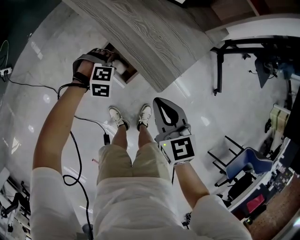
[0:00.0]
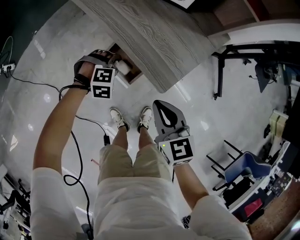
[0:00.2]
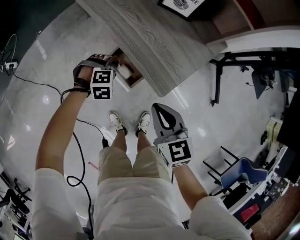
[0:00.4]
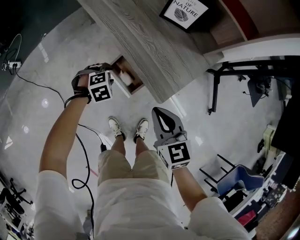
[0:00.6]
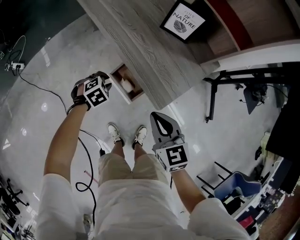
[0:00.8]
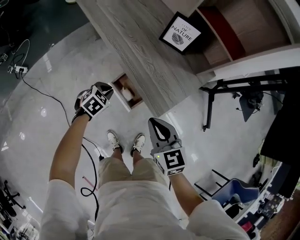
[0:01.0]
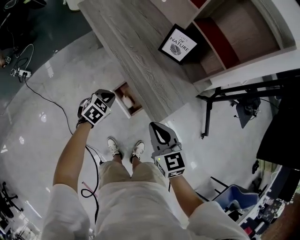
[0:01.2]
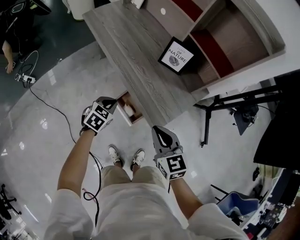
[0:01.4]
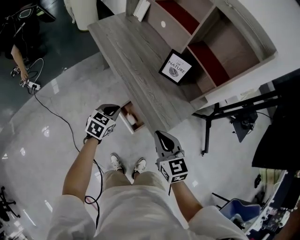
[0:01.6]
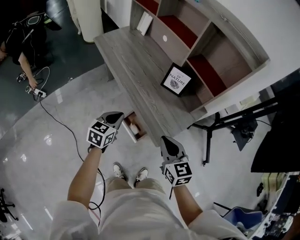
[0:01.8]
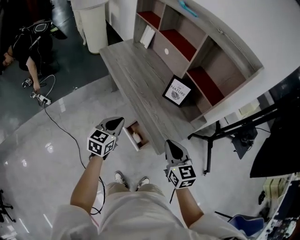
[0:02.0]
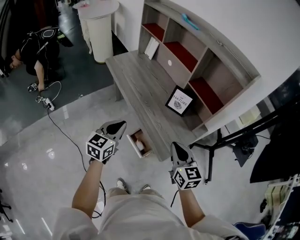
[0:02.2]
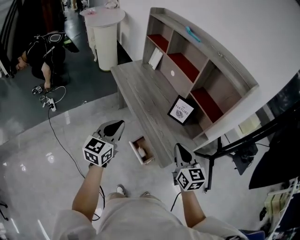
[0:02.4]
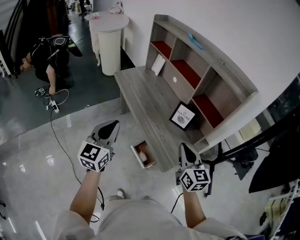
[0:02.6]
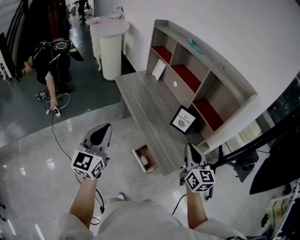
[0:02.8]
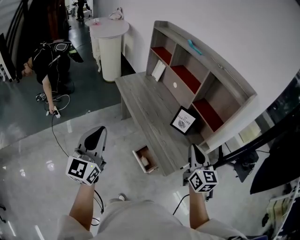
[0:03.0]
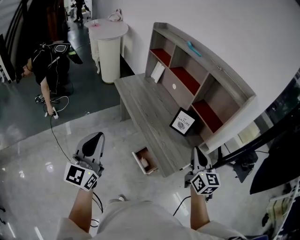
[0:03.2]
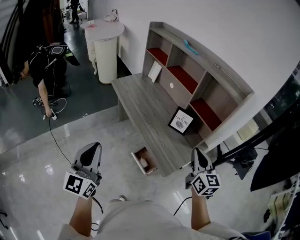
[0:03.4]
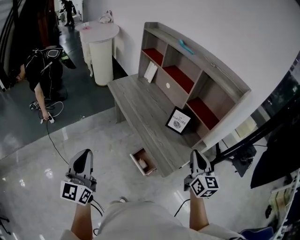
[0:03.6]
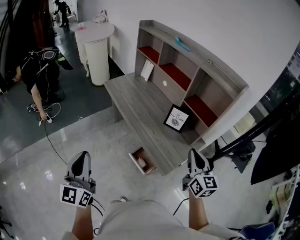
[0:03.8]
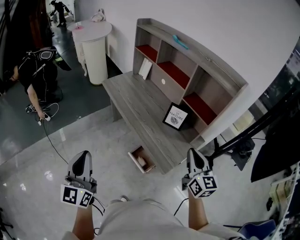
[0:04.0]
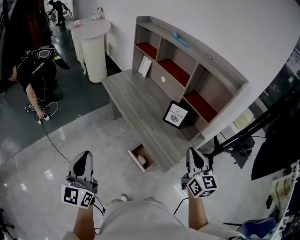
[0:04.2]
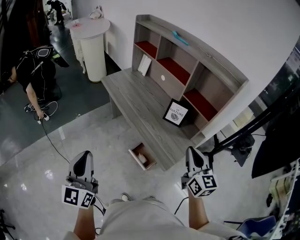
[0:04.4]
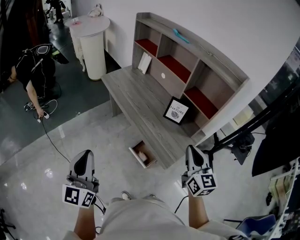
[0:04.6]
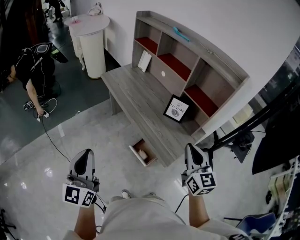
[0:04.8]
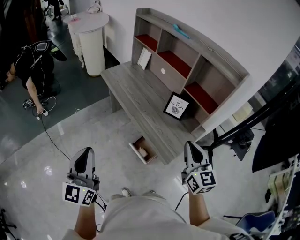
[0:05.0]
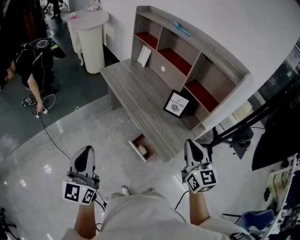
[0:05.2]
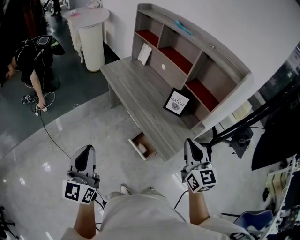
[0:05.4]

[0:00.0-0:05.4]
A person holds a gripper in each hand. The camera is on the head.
0.0 to 1.4 s: The left gripper moves upward and to the left, roughly 20 cm, rotates around the line of its fingers by roughly 60 degrees, counterclockwise from behind, and closes. The right gripper heads upward, covering approximately 15 cm.
1.4 to 2.8 s: The right gripper shifts roughly 20 cm upward, and rotates some 20 degrees. The left gripper moves upward, about 40 cm, and tips its fingers upward by about 50 degrees.
2.8 to 4.0 s: The left gripper is displaced backward and to the left by approximately 10 cm.
4.0 to 5.4 s: The right gripper shifts by approximately 5 cm.

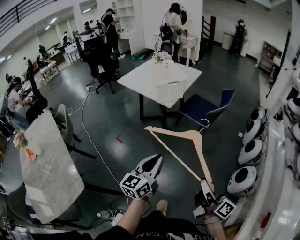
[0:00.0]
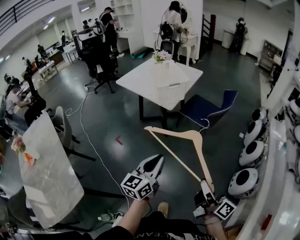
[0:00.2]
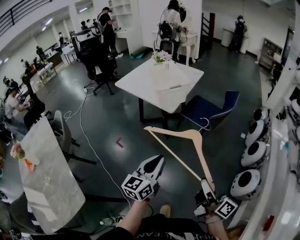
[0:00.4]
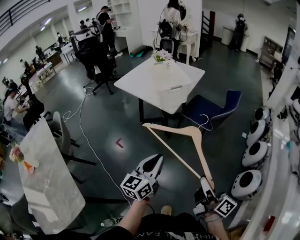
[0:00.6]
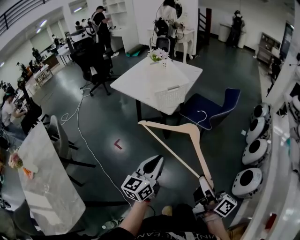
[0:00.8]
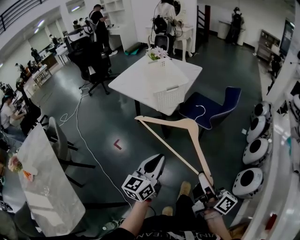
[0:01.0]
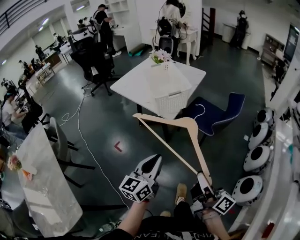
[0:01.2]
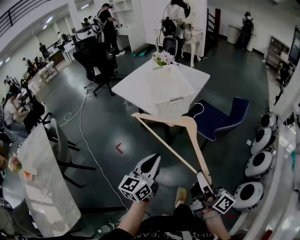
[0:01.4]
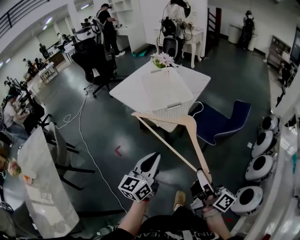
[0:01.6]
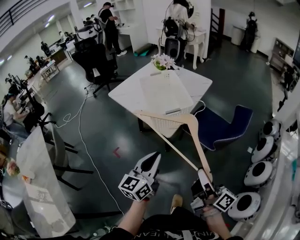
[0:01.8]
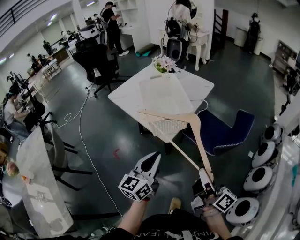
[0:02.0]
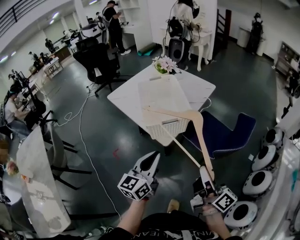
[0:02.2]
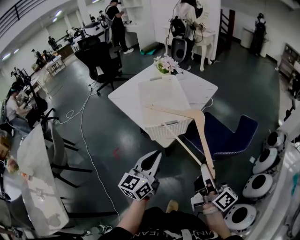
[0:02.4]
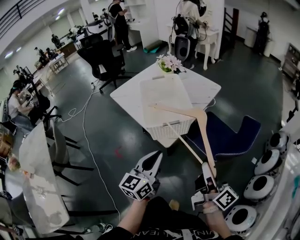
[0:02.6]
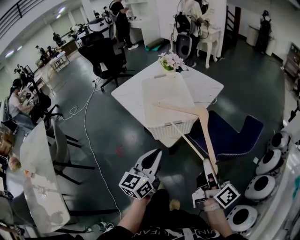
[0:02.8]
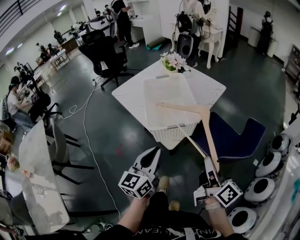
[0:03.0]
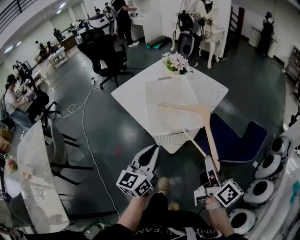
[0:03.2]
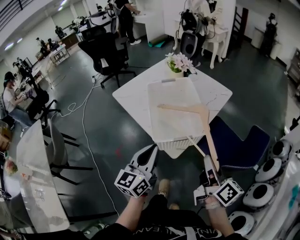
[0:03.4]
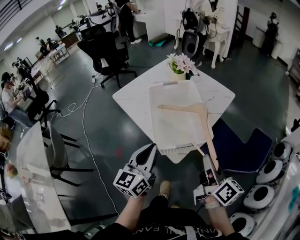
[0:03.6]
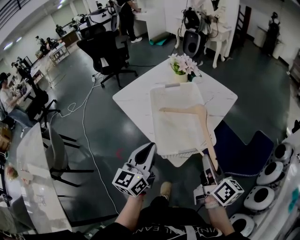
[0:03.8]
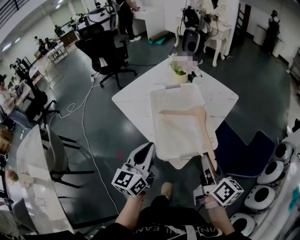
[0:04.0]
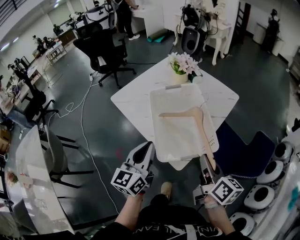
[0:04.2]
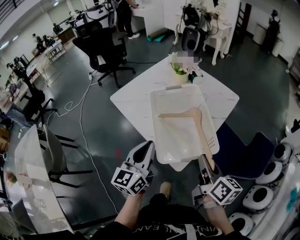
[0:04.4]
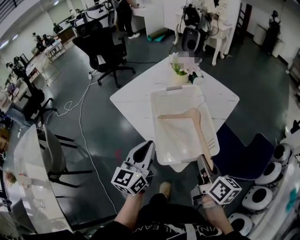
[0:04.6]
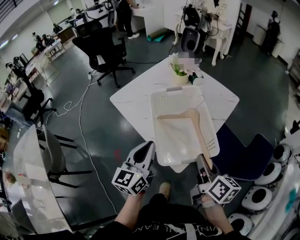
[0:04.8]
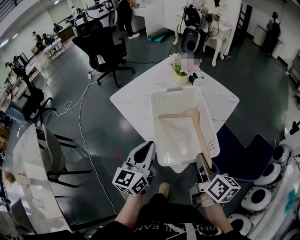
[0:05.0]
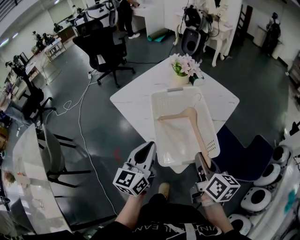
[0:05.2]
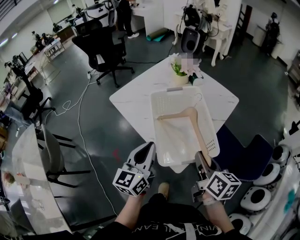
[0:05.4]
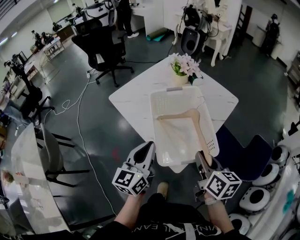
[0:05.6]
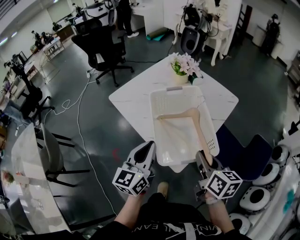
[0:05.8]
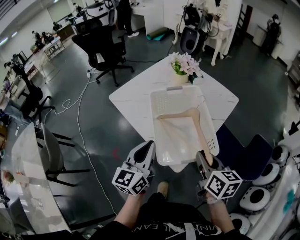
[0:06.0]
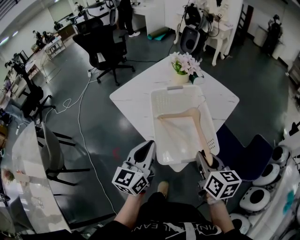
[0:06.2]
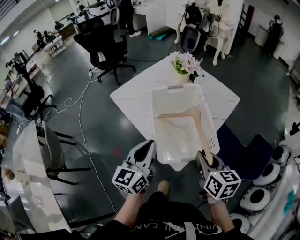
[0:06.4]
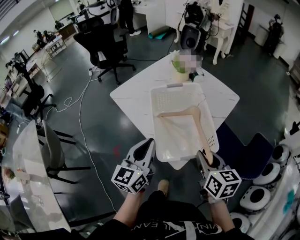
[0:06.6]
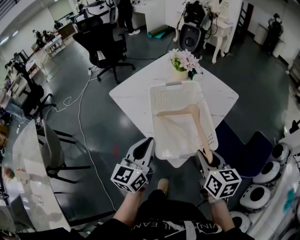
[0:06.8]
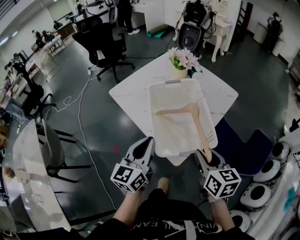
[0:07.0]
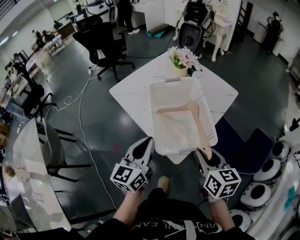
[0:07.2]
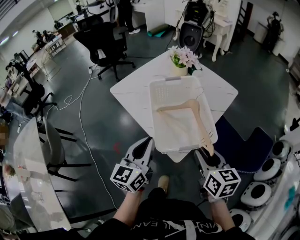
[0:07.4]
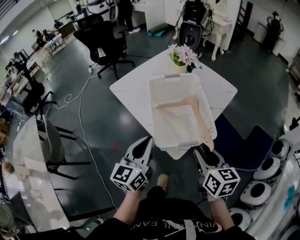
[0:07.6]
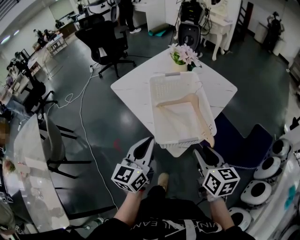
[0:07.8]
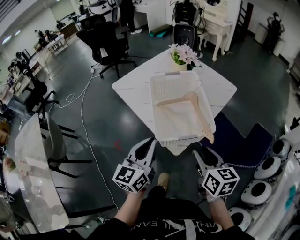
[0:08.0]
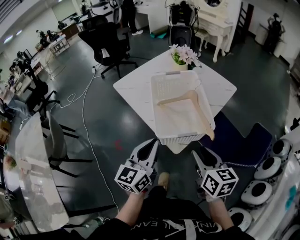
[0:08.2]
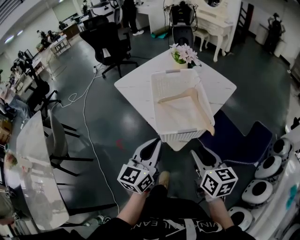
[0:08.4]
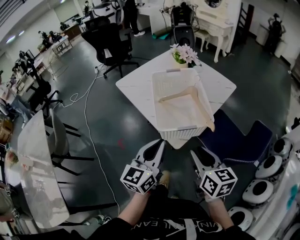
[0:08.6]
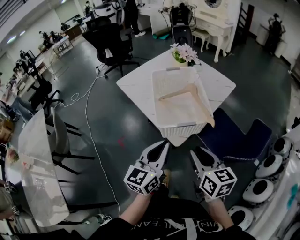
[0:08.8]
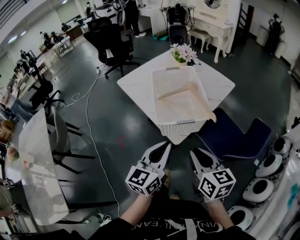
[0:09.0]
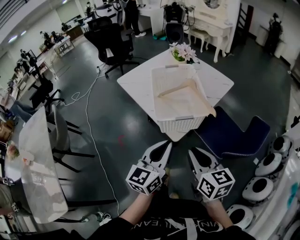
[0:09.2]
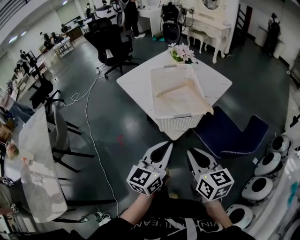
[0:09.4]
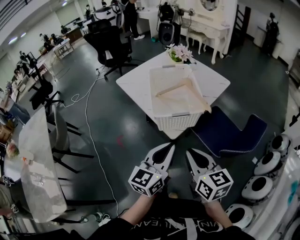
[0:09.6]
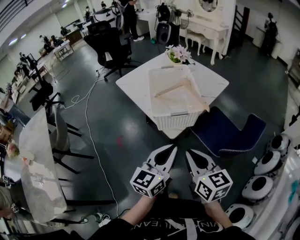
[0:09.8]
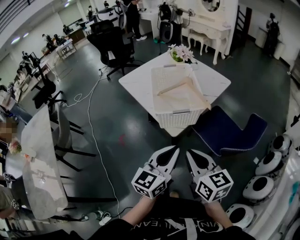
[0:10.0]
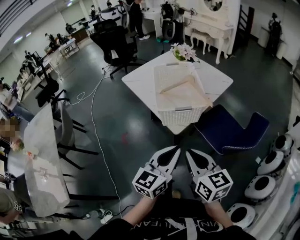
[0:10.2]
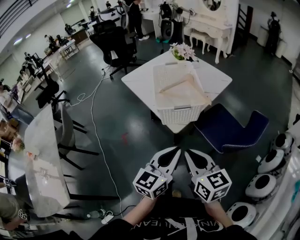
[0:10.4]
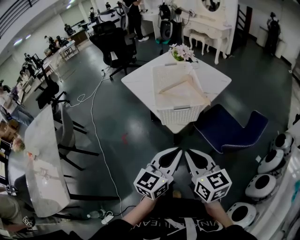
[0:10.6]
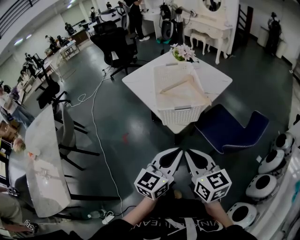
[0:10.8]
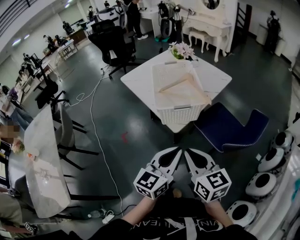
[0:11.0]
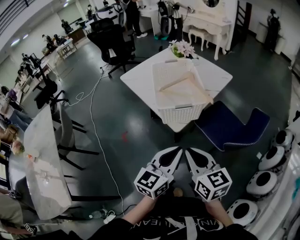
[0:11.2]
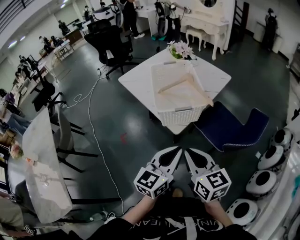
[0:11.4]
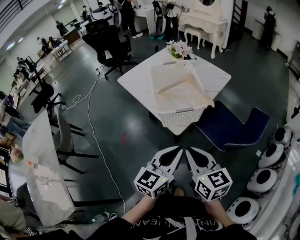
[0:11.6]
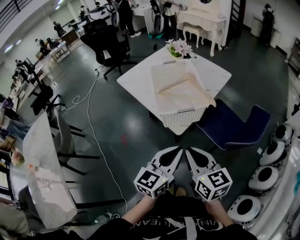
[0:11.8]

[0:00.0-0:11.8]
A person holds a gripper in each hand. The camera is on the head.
0.0 to 1.4 s: Both grippers travel together forward, some 25 cm.
1.4 to 3.0 s: The two grippers go about 25 cm forward.
3.0 to 4.4 s: The grippers both shift forward and to the left by about 20 cm. The right gripper swivels about 20 degrees.
4.4 to 6.0 s: The grippers make only small movements.
6.0 to 7.4 s: The right gripper opens up.
7.4 to 8.8 s: The right gripper goes some 10 cm backward. The left gripper goes some 15 cm backward and to the right.
8.8 to 10.4 s: The left gripper shifts roughly 15 cm backward and to the right; the right gripper is displaced backward by roughly 10 cm.
10.4 to 11.8 s: The grippers stay close to where they were, moving slightly.

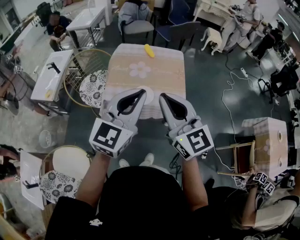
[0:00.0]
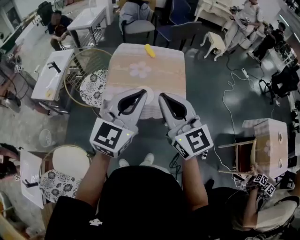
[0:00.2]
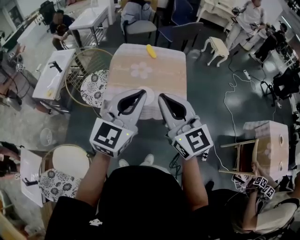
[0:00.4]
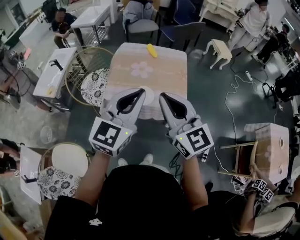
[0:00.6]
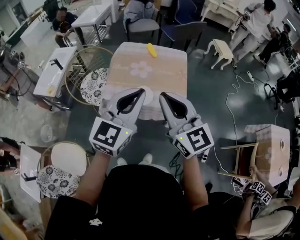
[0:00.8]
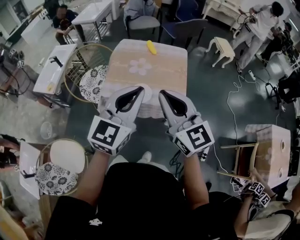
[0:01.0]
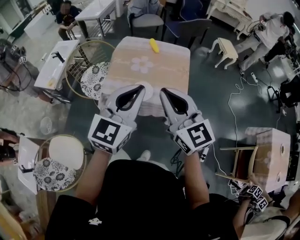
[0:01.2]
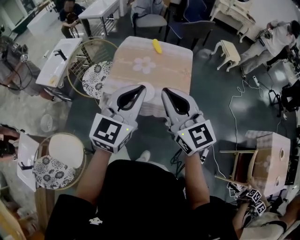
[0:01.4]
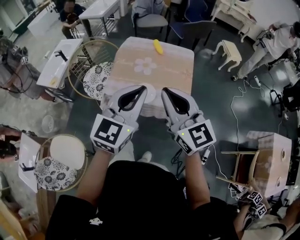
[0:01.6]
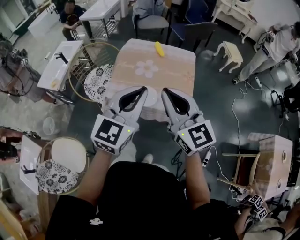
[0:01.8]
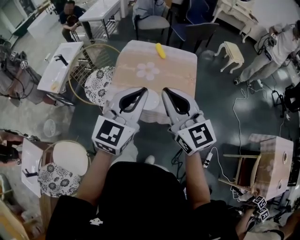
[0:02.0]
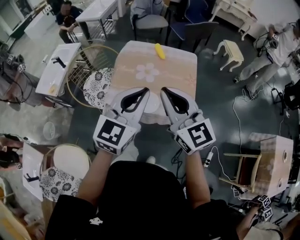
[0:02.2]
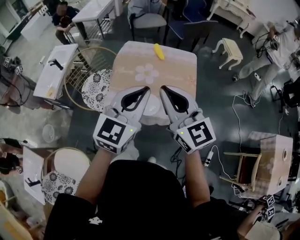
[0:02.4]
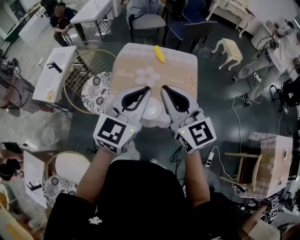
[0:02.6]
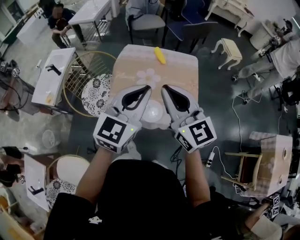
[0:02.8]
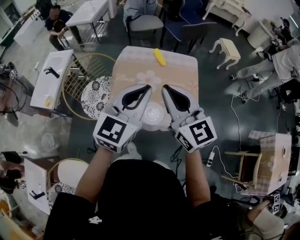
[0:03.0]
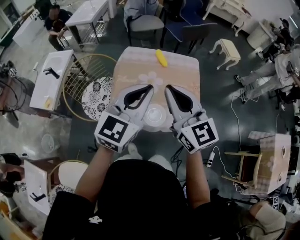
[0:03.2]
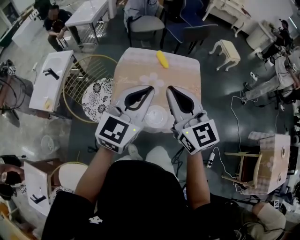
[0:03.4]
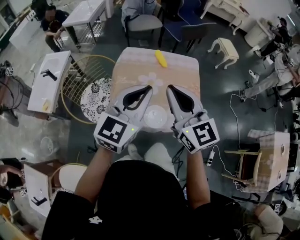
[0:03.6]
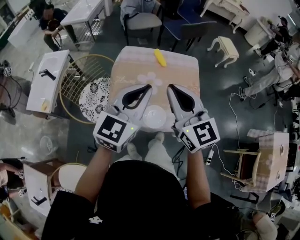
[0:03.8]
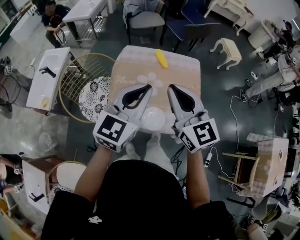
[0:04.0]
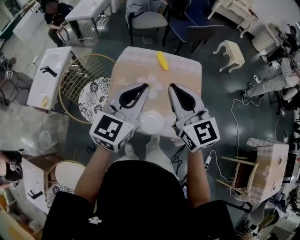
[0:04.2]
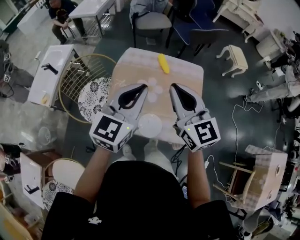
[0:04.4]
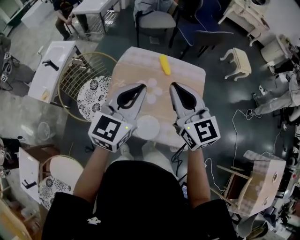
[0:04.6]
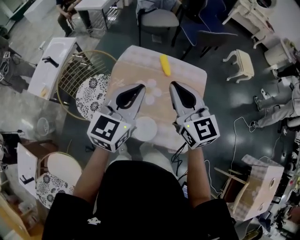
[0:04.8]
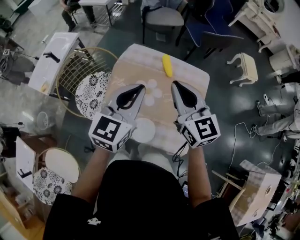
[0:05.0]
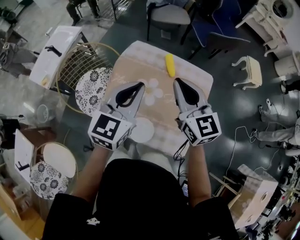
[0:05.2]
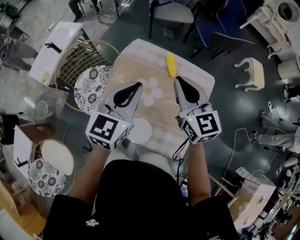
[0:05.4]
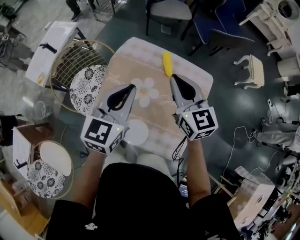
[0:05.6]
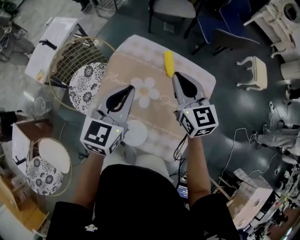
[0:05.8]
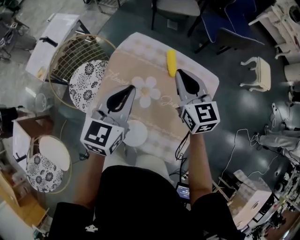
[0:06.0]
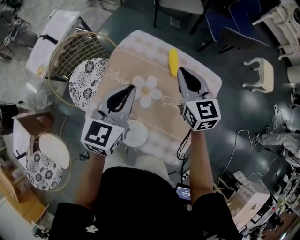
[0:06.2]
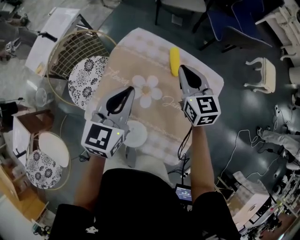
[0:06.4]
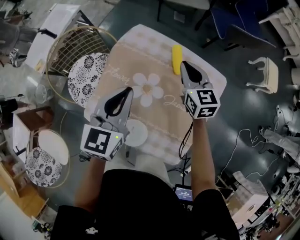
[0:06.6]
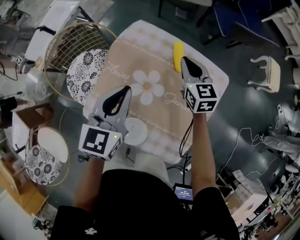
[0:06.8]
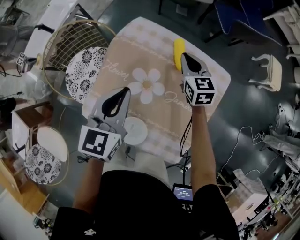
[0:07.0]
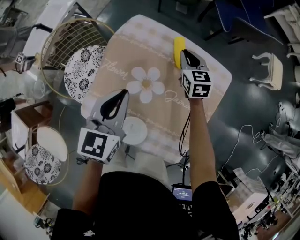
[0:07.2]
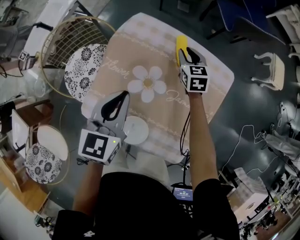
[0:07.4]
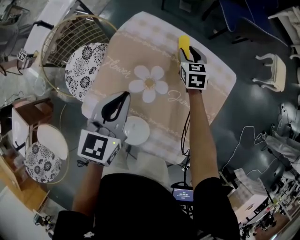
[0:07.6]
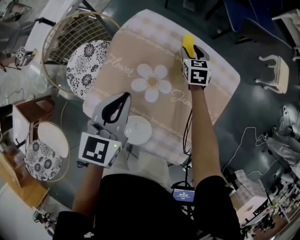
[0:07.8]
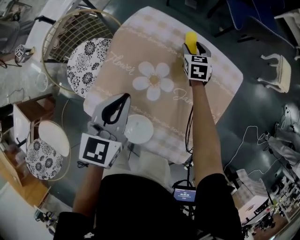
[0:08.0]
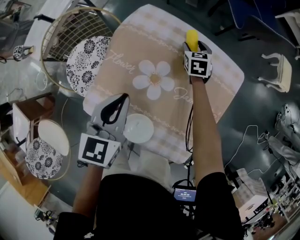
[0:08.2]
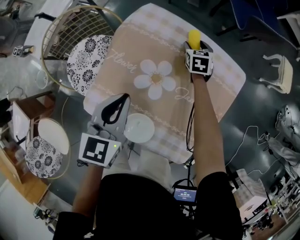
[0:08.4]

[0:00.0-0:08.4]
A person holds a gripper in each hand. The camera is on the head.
0.0 to 1.4 s: The right gripper shifts by some 5 cm. Meanwhile the left gripper shifts by approximately 5 cm.
1.4 to 2.8 s: Both grippers travel together forward, some 15 cm.
2.8 to 4.2 s: The grippers both shift forward by roughly 10 cm.
4.2 to 5.6 s: The two grippers go approximately 20 cm forward and downward. The left gripper changes its angle by about 20 degrees.
5.6 to 7.0 s: The left gripper moves downward, roughly 10 cm, while the right gripper heads downward and forward, covering roughly 25 cm.
7.0 to 8.4 s: The right gripper shifts roughly 15 cm downward, rotates about 20 degrees, and opens up. Meanwhile the left gripper moves downward, about 5 cm.
